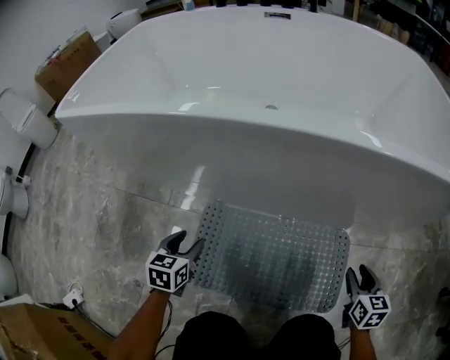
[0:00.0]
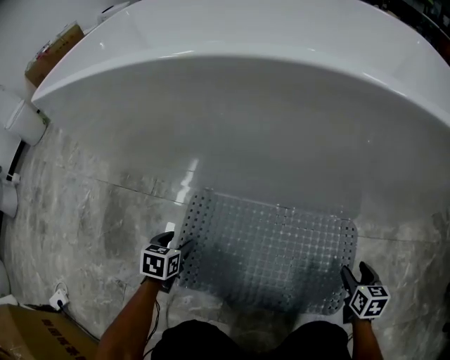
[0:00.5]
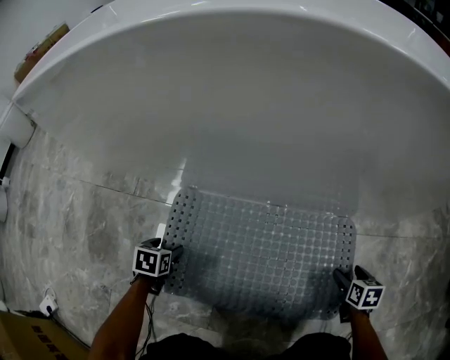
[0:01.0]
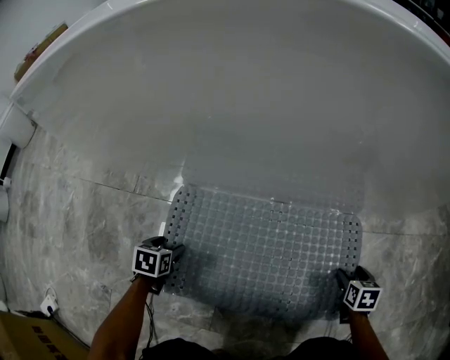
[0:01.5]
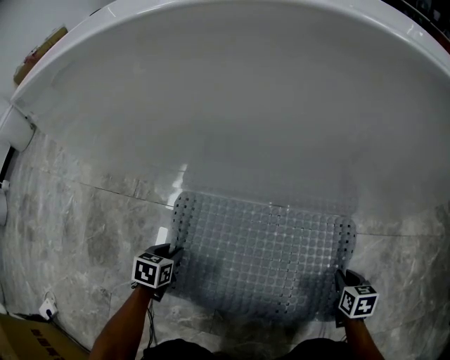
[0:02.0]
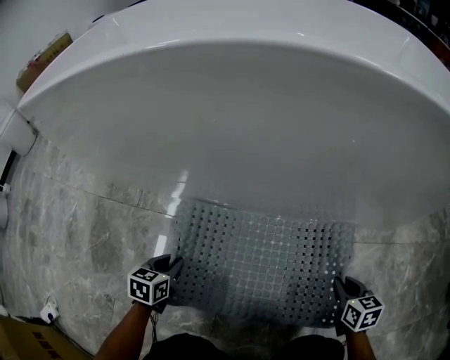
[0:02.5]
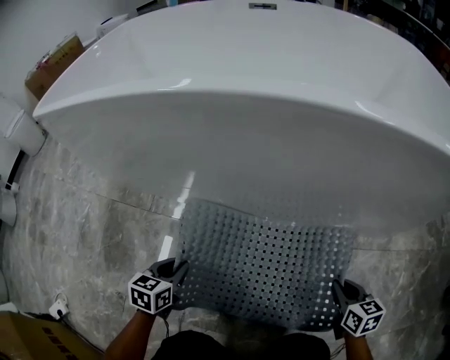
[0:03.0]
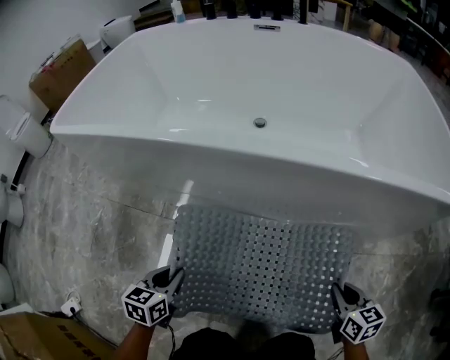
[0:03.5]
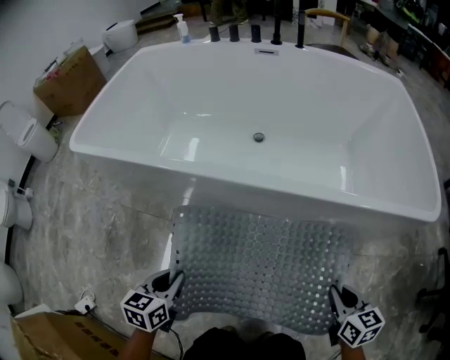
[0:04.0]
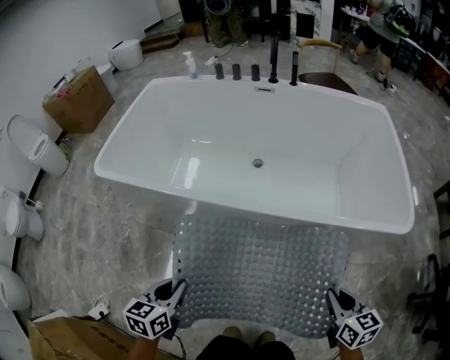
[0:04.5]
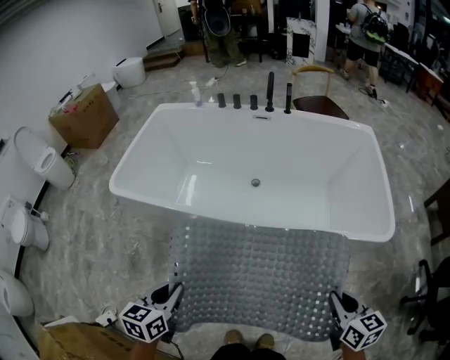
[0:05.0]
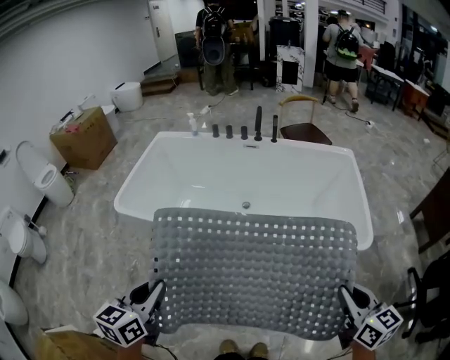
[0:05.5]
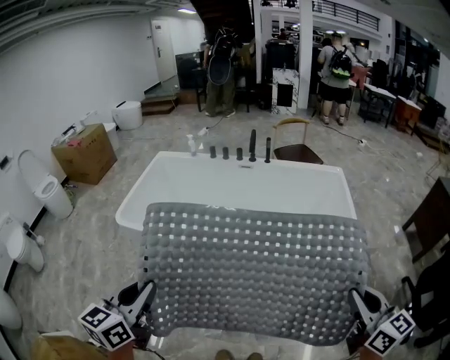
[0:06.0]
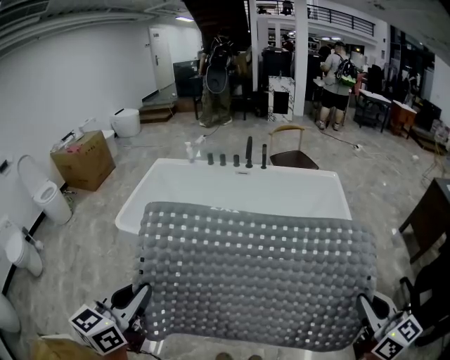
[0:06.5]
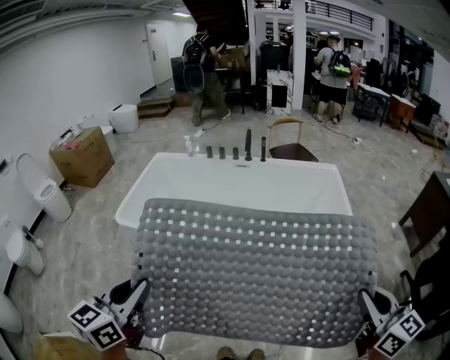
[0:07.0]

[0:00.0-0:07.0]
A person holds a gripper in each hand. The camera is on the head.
0:00.0 to 0:02.0: The two grippers go some 20 cm downward. The right gripper opens, then closes again.
0:02.0 to 0:03.5: Both grippers move upward, some 30 cm.
0:03.5 to 0:05.0: The grippers both shift upward by roughly 40 cm.
0:05.0 to 0:07.0: The left gripper moves upward, roughly 30 cm, and changes its angle by roughly 20 degrees. Meanwhile the right gripper heads upward and backward, covering about 30 cm, and swivels roughly 20 degrees.

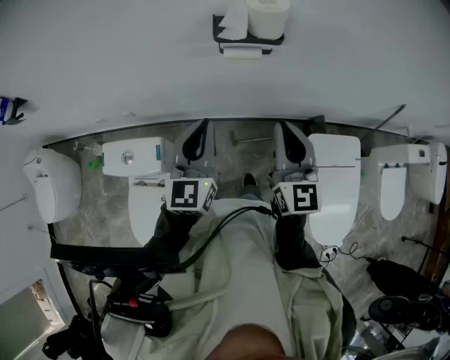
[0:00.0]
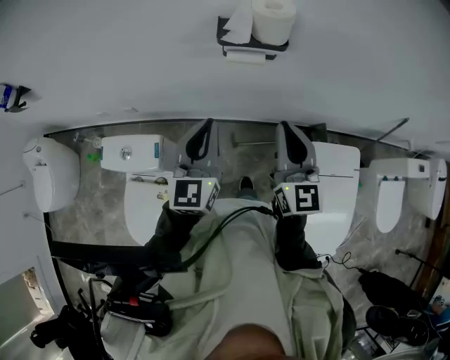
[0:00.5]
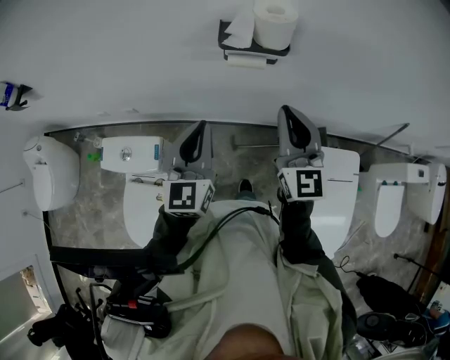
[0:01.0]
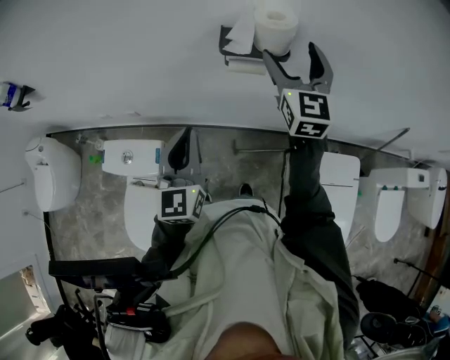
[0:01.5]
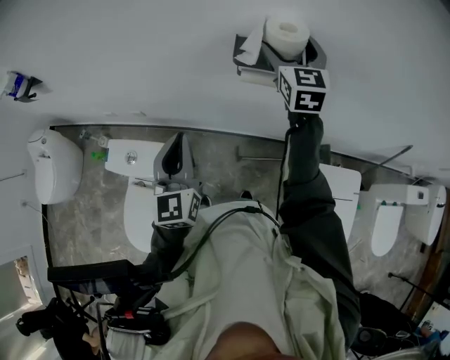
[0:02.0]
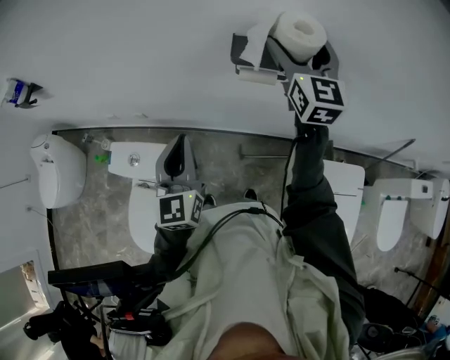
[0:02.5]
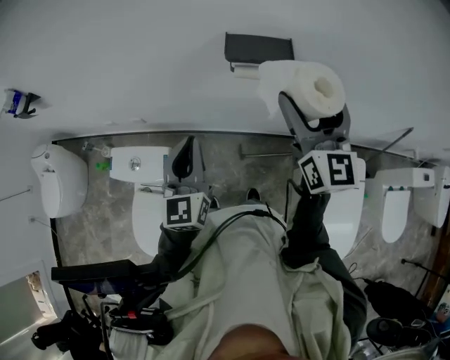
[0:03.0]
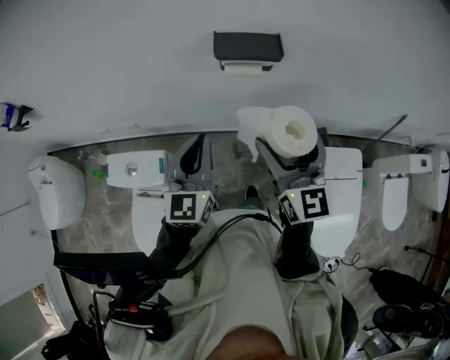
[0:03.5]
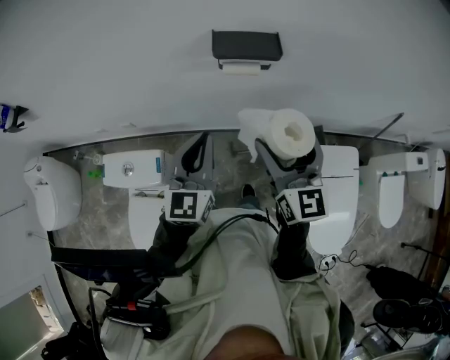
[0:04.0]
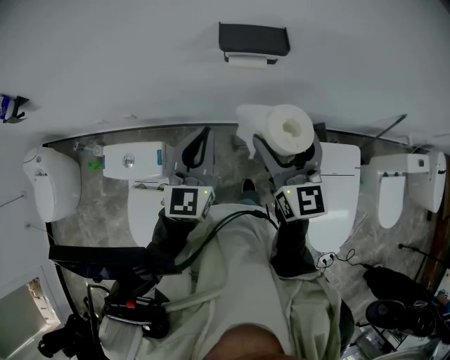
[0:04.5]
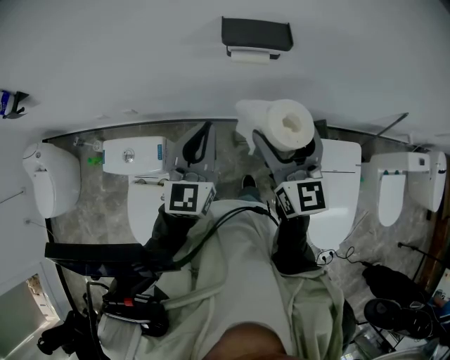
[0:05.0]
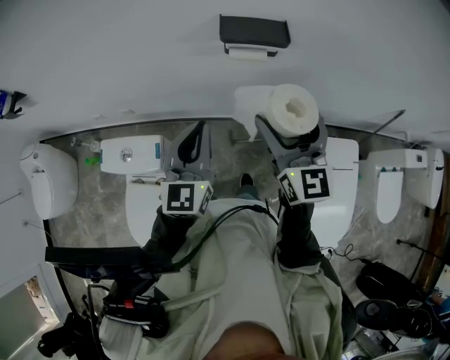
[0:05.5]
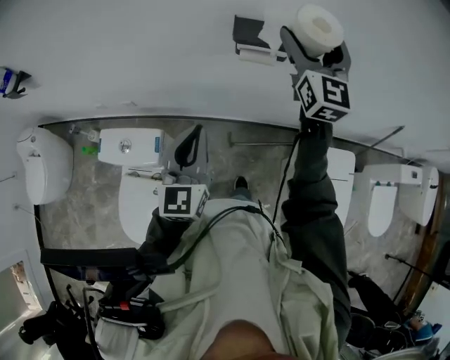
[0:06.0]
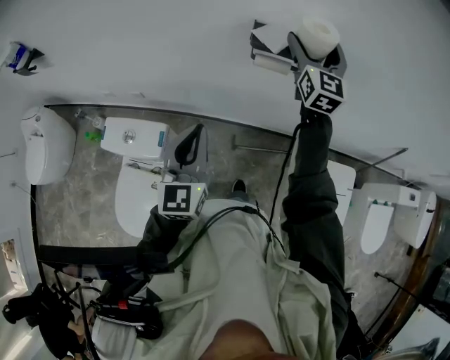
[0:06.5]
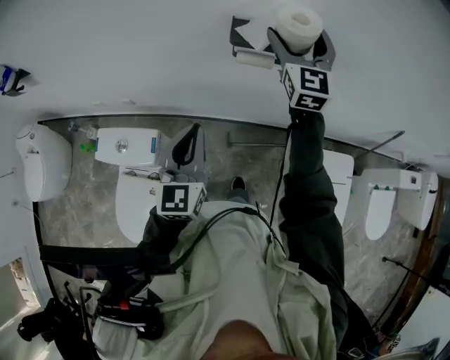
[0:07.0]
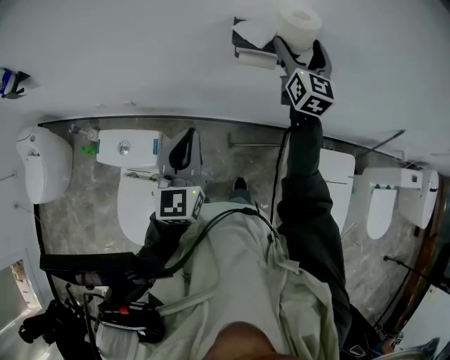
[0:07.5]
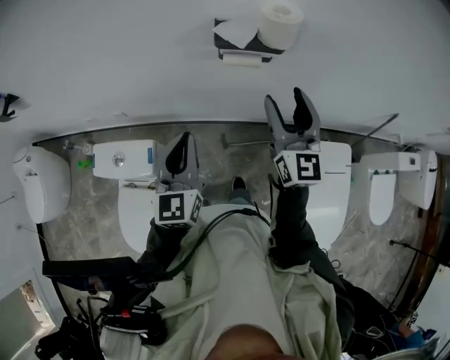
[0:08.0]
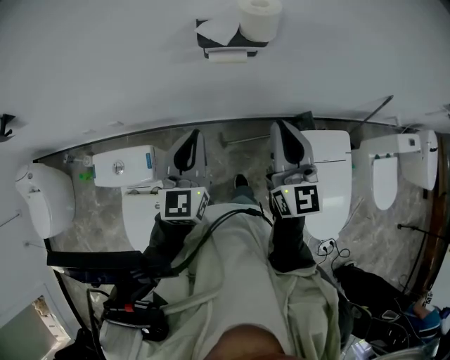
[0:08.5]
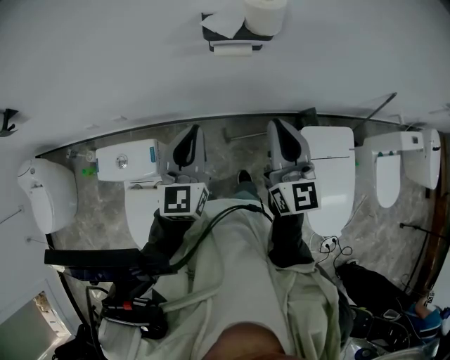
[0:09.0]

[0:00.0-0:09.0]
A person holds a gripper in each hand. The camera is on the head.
0:00.0 to 0:02.0: The left gripper is displaced to the left by some 5 cm, while the right gripper moves forward, roughly 30 cm, and opens up.
0:02.0 to 0:04.5: The right gripper shifts some 25 cm backward. The left gripper shifts approximately 5 cm to the right.
0:04.5 to 0:07.0: The right gripper goes roughly 20 cm forward.
0:07.0 to 0:09.0: The right gripper travels backward by roughly 25 cm, and closes up.

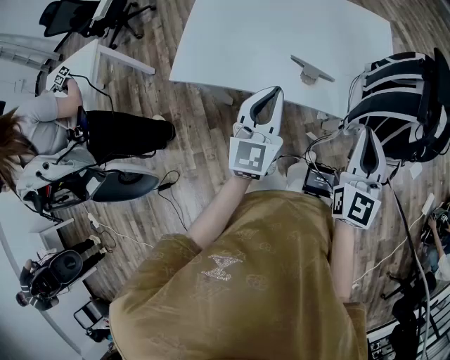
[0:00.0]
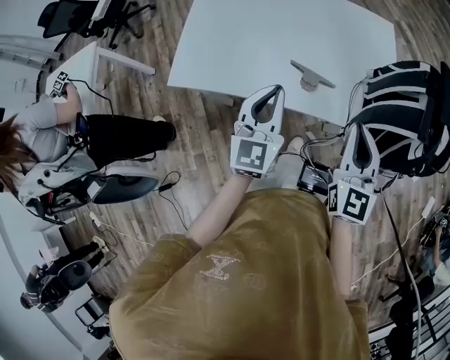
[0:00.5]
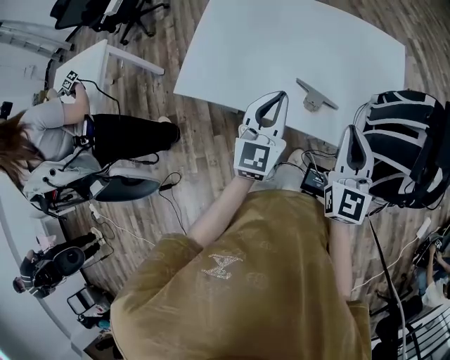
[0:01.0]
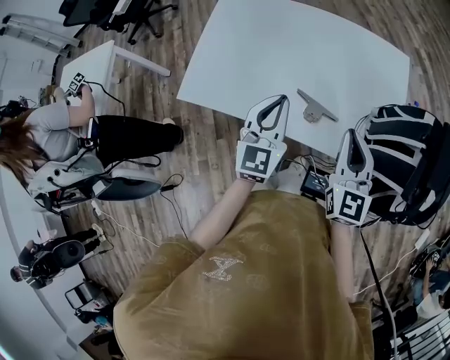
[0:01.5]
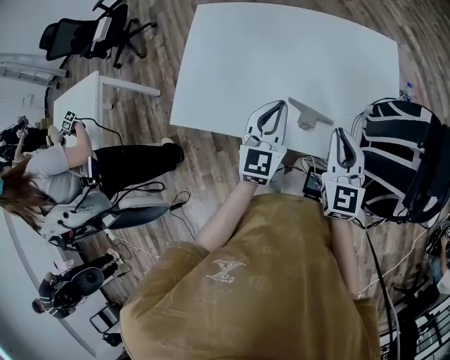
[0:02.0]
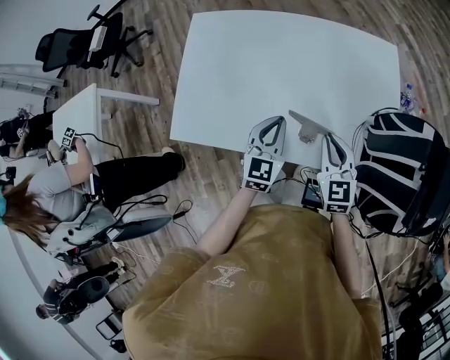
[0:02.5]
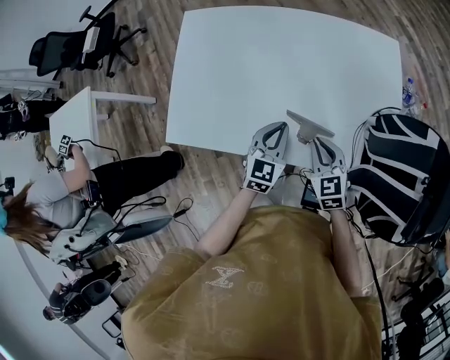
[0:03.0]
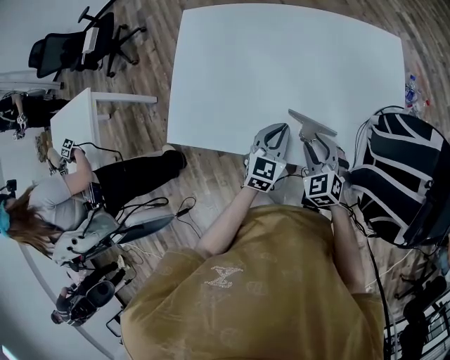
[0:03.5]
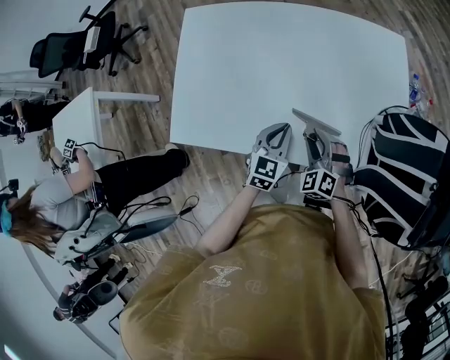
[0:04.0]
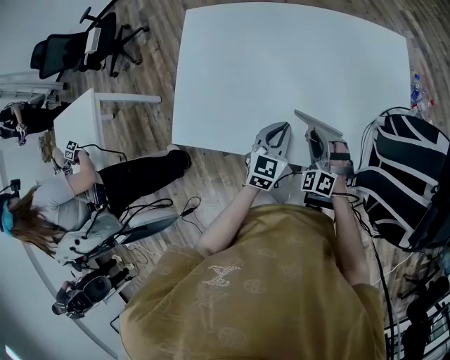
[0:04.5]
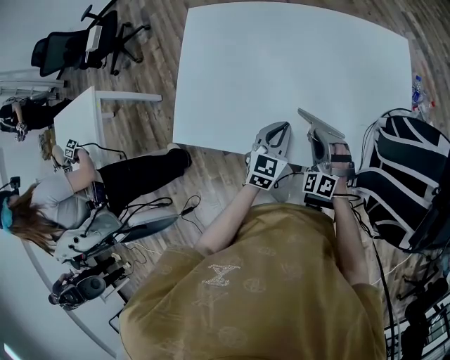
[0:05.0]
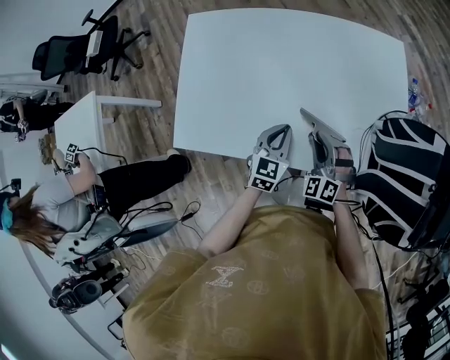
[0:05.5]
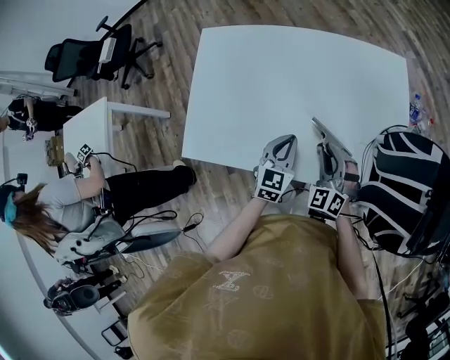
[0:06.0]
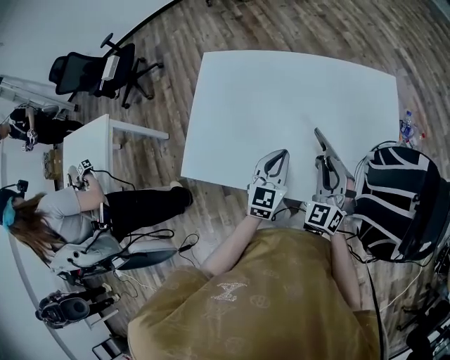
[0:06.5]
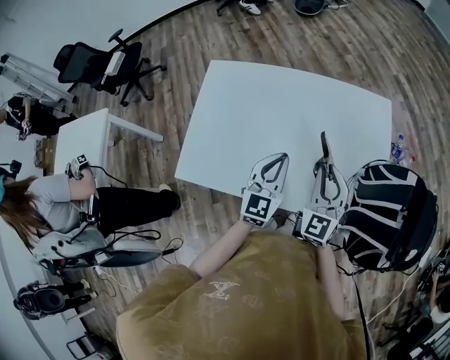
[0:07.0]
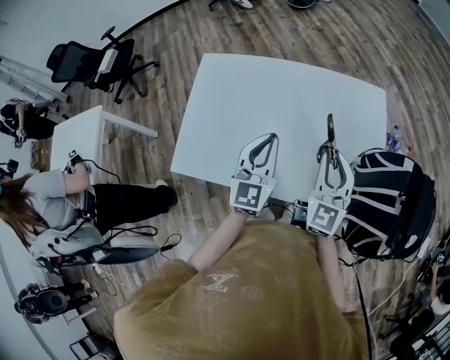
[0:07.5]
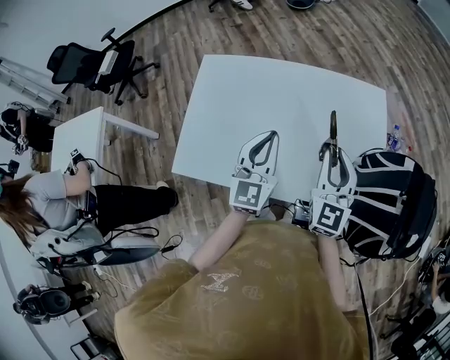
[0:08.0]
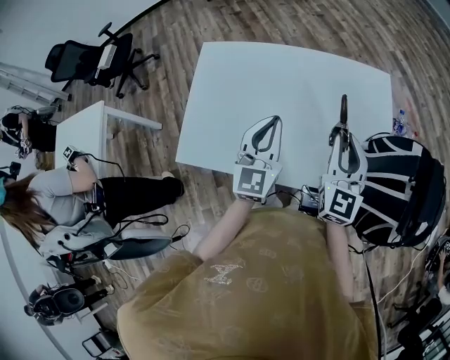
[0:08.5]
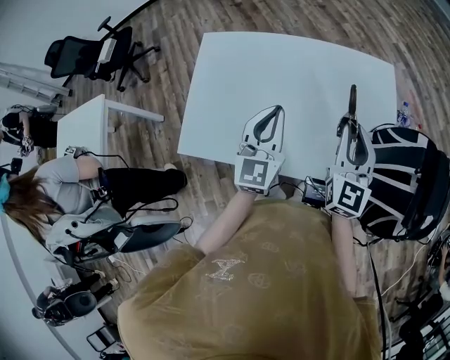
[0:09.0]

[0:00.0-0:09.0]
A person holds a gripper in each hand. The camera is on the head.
0:00.0 to 0:02.0: The right gripper moves forward and downward, some 15 cm. Meanwhile the left gripper shifts roughly 15 cm forward.
0:02.0 to 0:04.5: The two grippers go approximately 20 cm downward. The right gripper rolls counterclockwise, seen from behind, by some 50 degrees, and opens up. Meanwhile the left gripper changes its angle by about 20 degrees.
0:04.5 to 0:07.0: The two grippers go some 15 cm upward. The left gripper rotates some 20 degrees; the right gripper changes its angle by approximately 40 degrees.
0:07.0 to 0:09.0: The two grippers go roughly 5 cm upward. The right gripper swivels approximately 20 degrees.

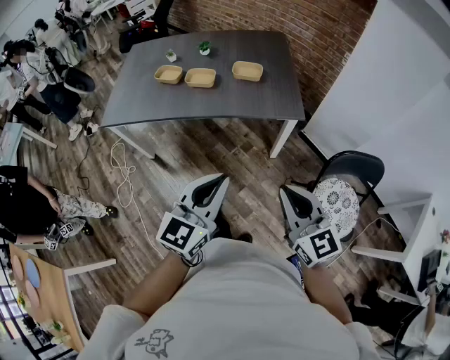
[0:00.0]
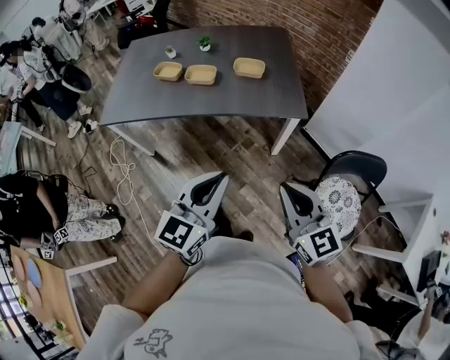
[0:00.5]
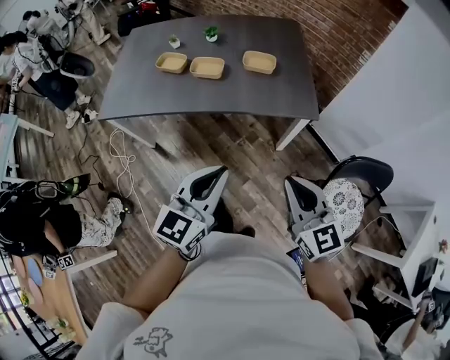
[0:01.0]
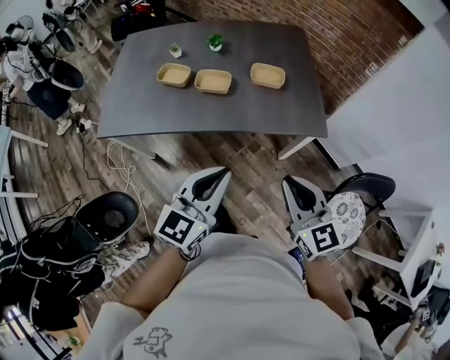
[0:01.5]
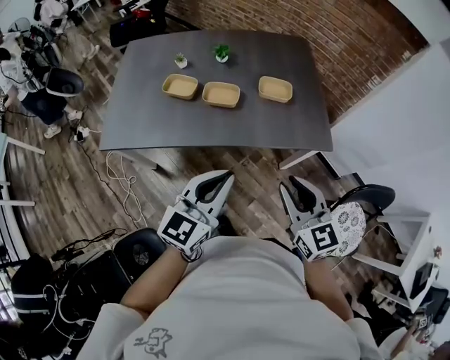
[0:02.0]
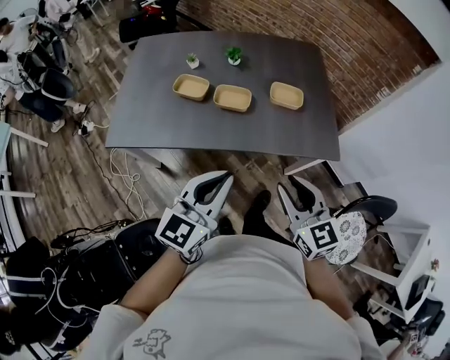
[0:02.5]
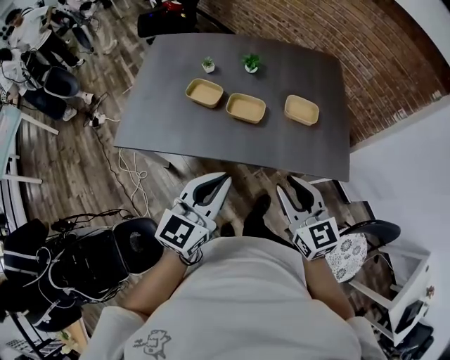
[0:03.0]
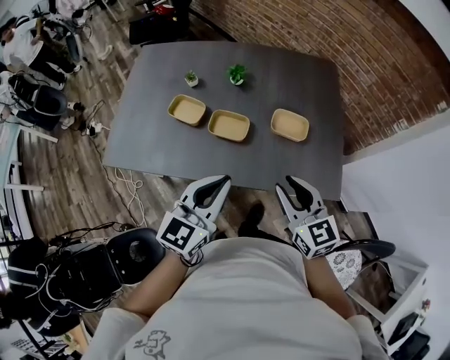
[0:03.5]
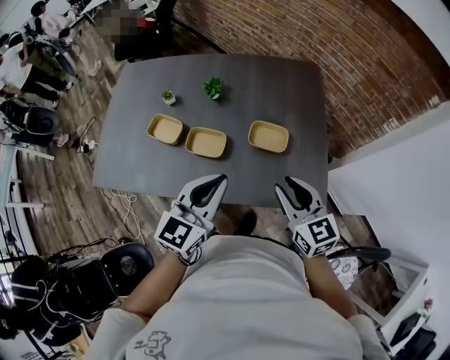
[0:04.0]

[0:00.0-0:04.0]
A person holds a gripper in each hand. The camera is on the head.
0:00.0 to 0:02.0: The two grippers go about 30 cm forward and to the left. The right gripper opens its fingers.
0:02.0 to 0:04.0: The grippers both shift forward by about 25 cm.
